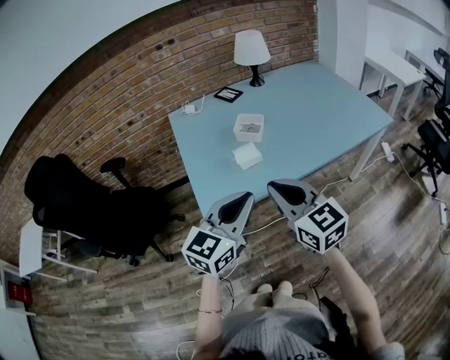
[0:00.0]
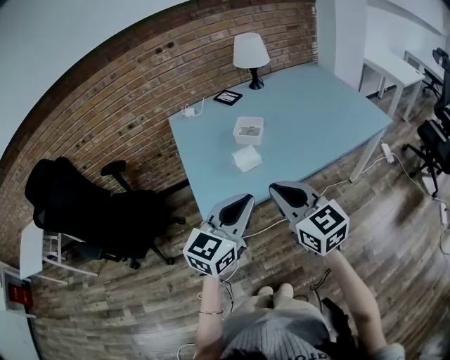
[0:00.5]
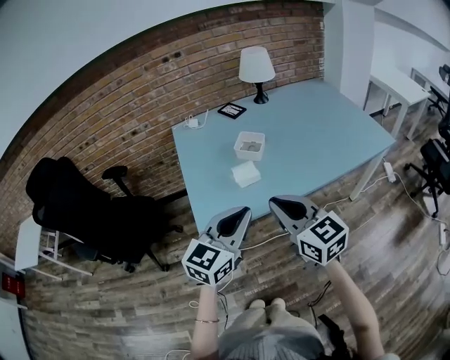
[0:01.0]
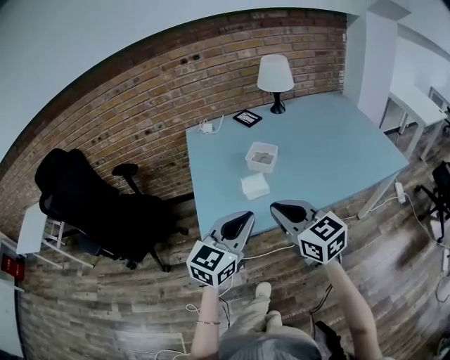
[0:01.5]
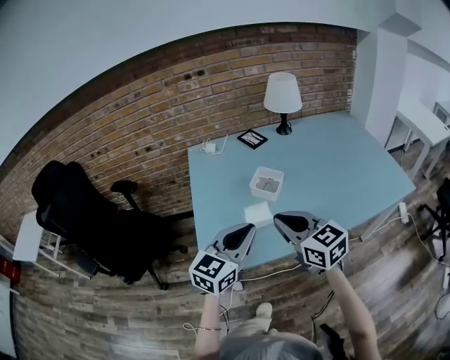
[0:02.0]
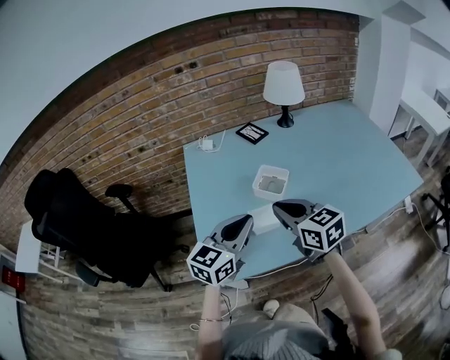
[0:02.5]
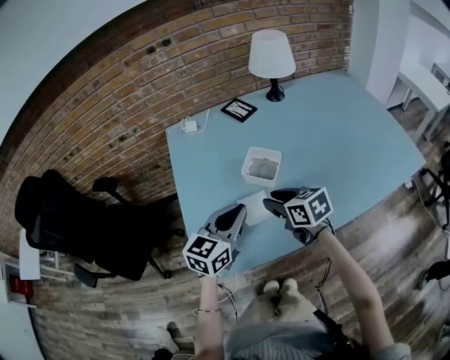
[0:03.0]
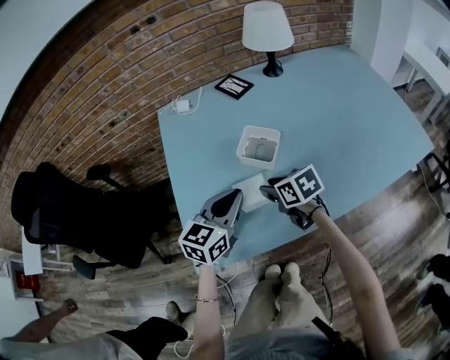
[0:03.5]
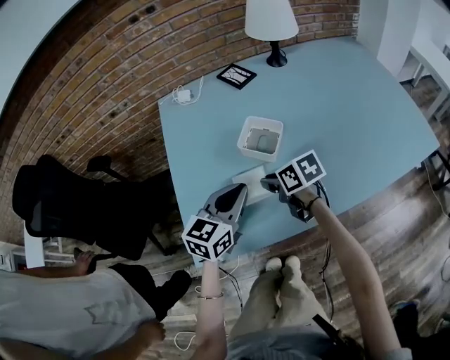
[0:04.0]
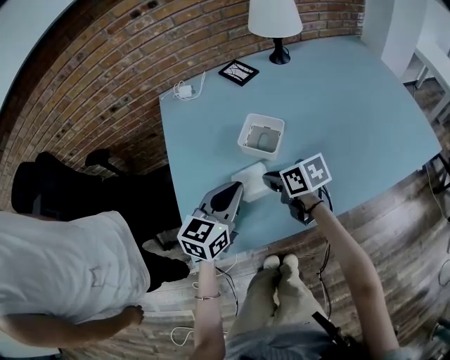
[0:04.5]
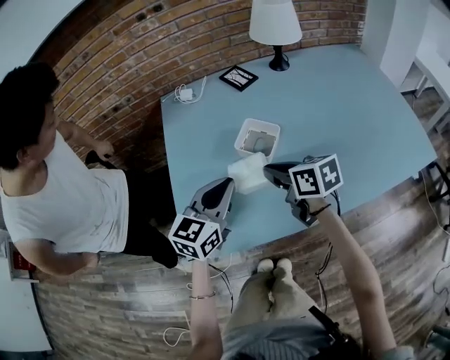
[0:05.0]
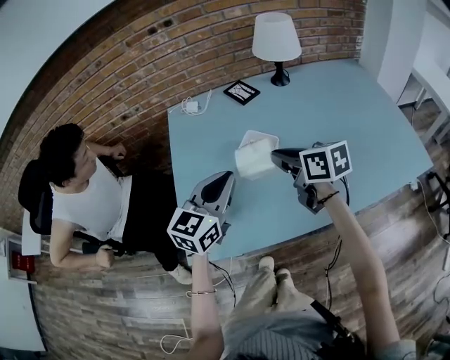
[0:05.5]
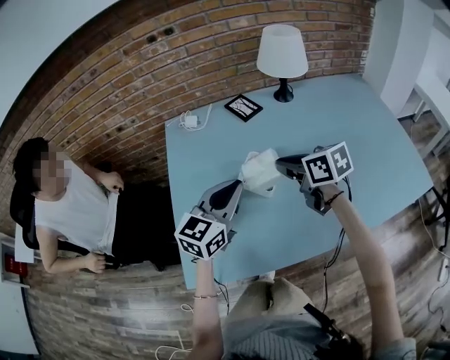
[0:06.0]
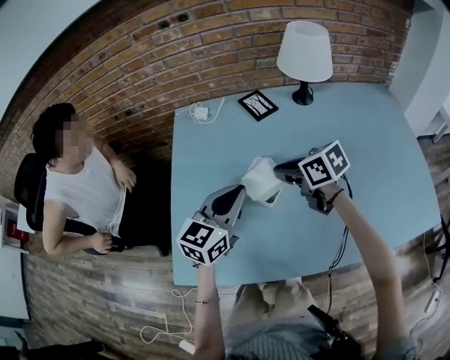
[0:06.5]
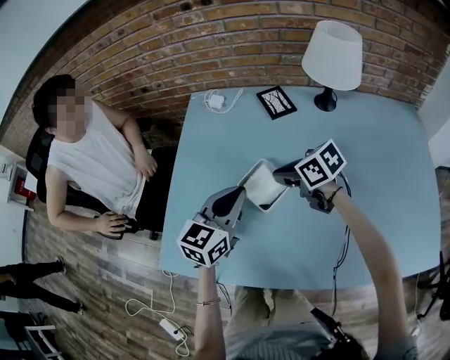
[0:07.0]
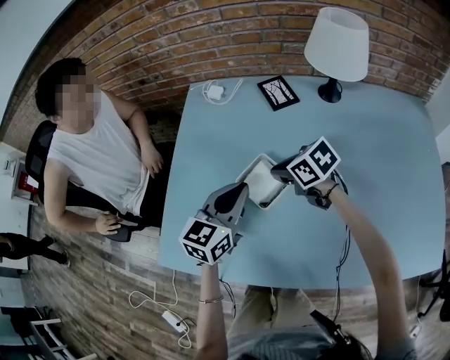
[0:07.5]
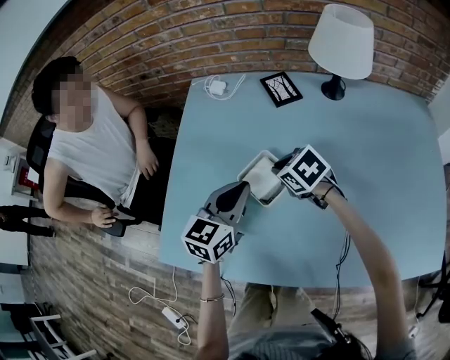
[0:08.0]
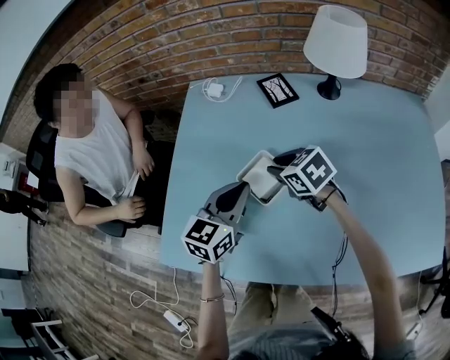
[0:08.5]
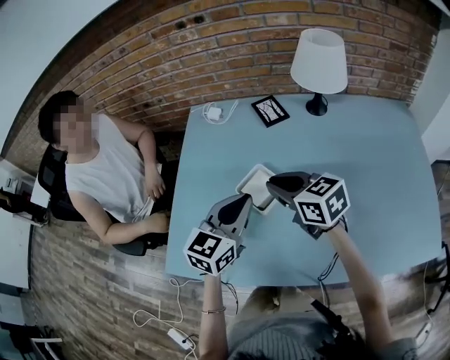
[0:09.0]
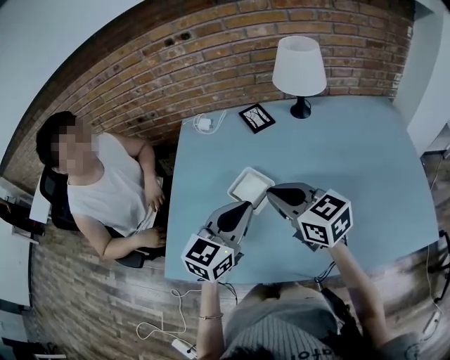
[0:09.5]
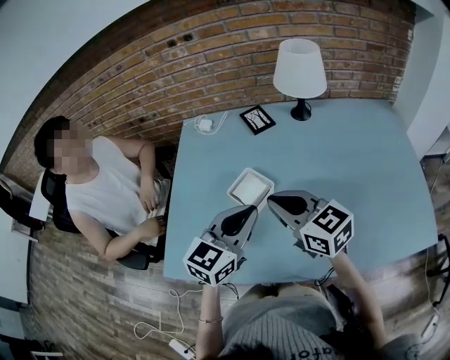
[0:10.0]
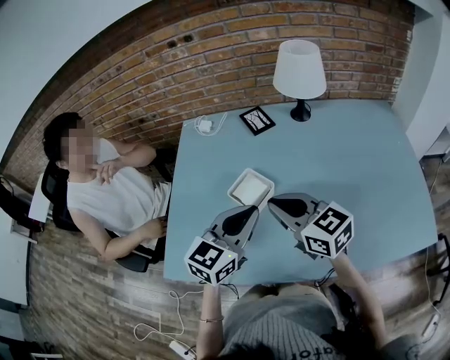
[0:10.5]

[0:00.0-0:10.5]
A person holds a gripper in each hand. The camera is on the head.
0:00.0 to 0:02.0: Both grippers travel together forward, approximately 15 cm.
0:02.0 to 0:04.0: The right gripper is displaced downward and forward by roughly 25 cm, and rotates about 50 degrees. The left gripper moves forward and downward, some 15 cm.
0:04.0 to 0:06.5: The left gripper is displaced forward and upward by approximately 10 cm. The right gripper heads forward, upward and to the right, covering about 20 cm, and turns by approximately 20 degrees.
0:06.5 to 0:08.5: The right gripper heads downward, covering roughly 5 cm, and changes its angle by roughly 20 degrees; the left gripper ends up approximately 5 cm from where it was.
0:08.5 to 0:10.5: The left gripper shifts roughly 15 cm backward, upward and to the right. The right gripper shifts roughly 20 cm upward and backward, and points its fingers roughly 30 degrees further upward.

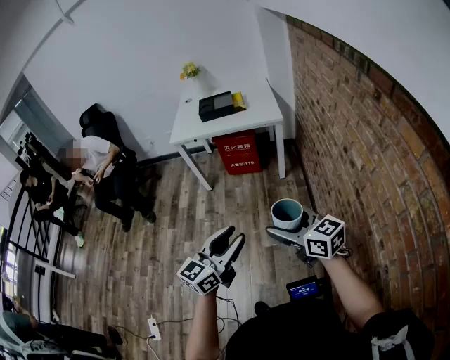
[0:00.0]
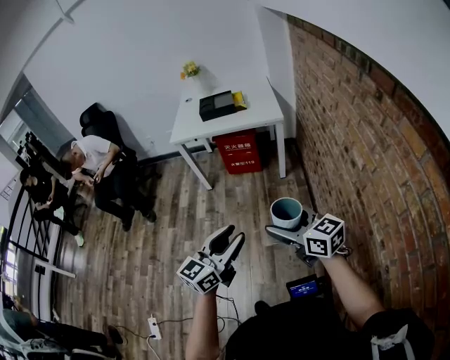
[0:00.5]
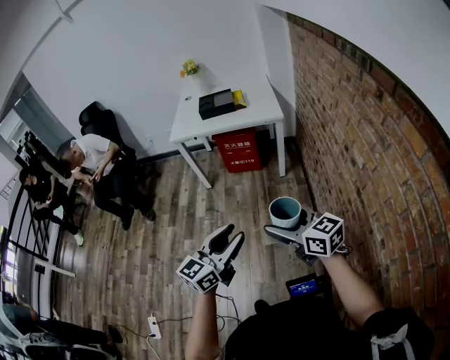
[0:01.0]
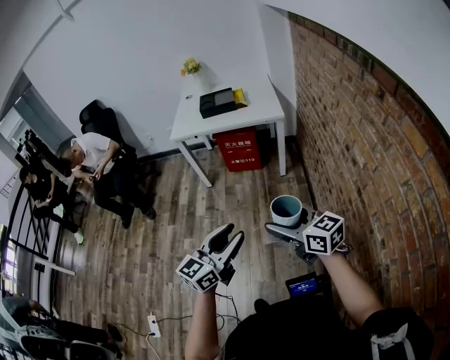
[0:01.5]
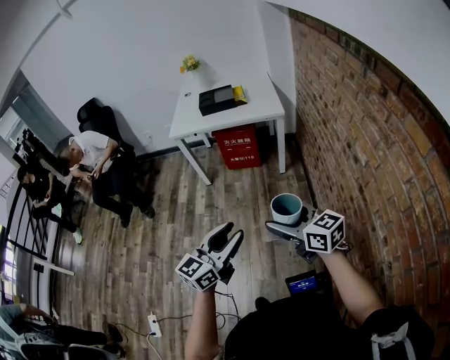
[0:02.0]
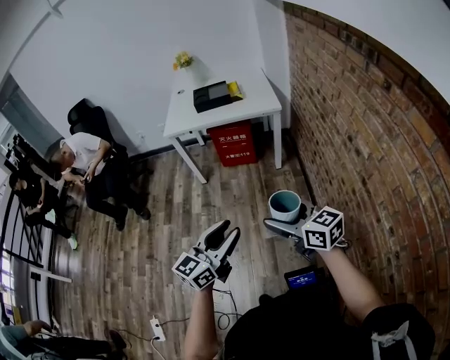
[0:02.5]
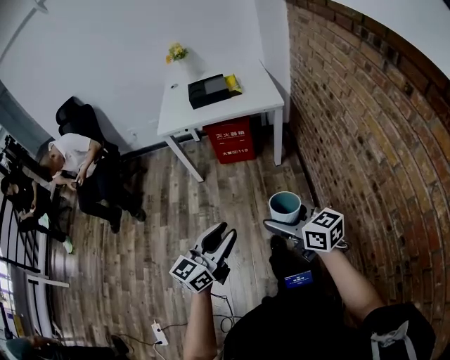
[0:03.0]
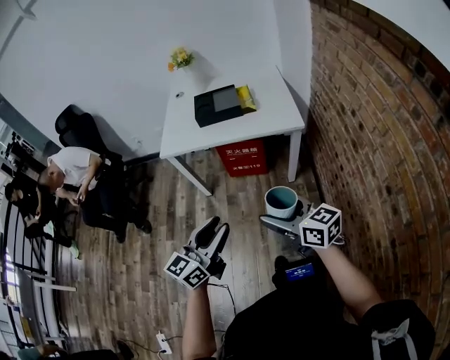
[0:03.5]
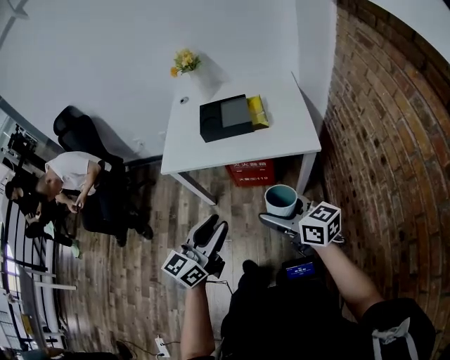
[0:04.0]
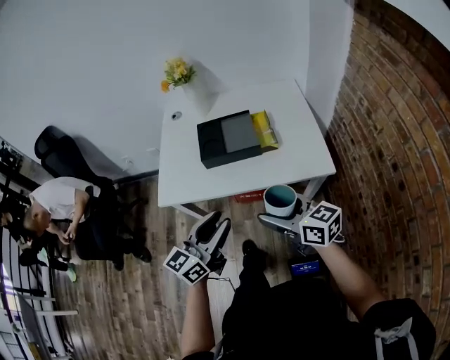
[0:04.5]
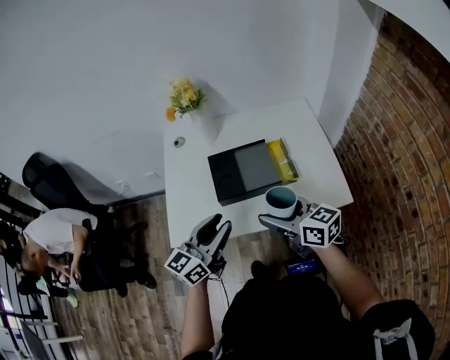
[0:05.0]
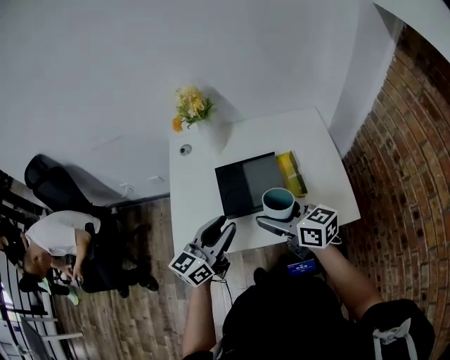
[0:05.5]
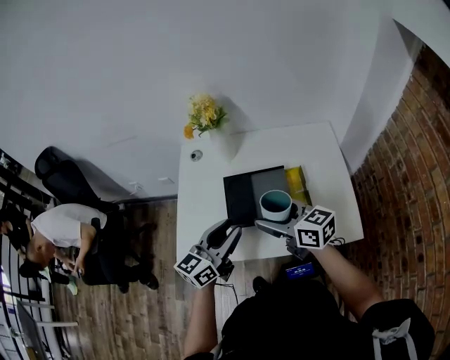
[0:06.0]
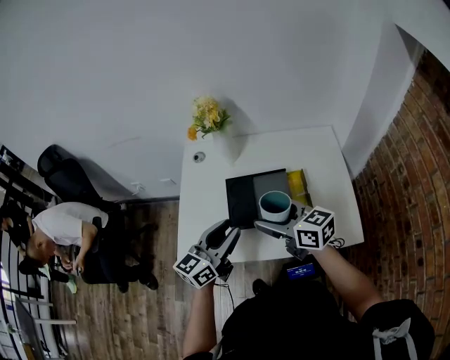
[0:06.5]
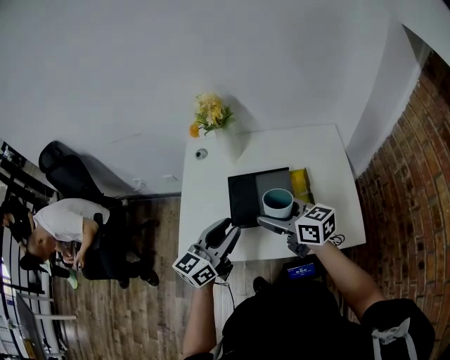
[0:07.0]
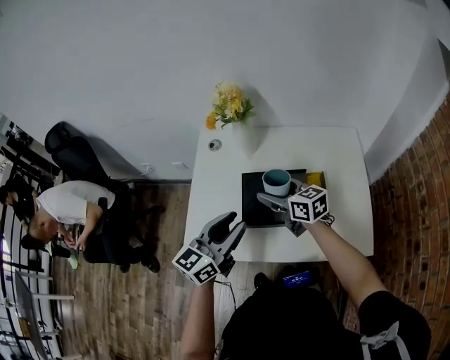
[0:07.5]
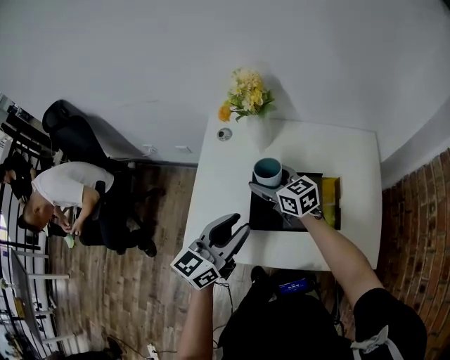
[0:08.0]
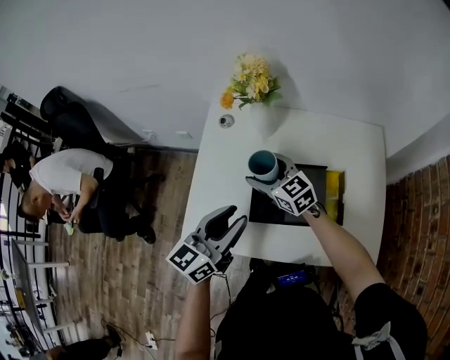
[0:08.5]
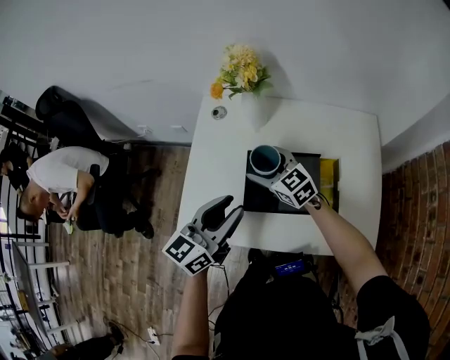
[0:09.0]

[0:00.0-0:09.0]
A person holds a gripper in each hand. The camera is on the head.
0:00.0 to 0:02.0: The grippers move only a little.
0:02.0 to 0:04.5: Both grippers are carried forward, some 60 cm.
0:04.5 to 0:07.0: Both grippers travel together forward, roughly 25 cm.
0:07.0 to 0:09.0: The left gripper is displaced forward by approximately 5 cm. The right gripper heads forward, downward and to the left, covering roughly 20 cm, and turns by approximately 30 degrees.

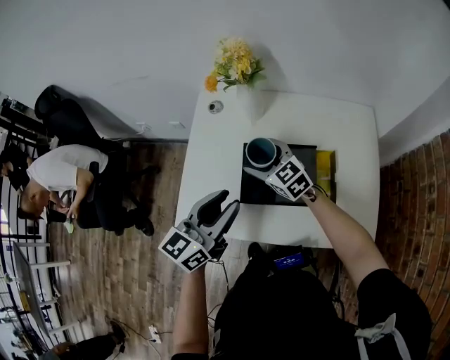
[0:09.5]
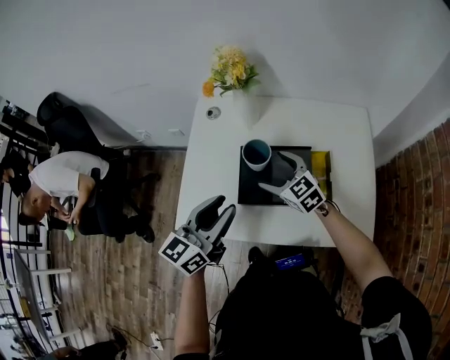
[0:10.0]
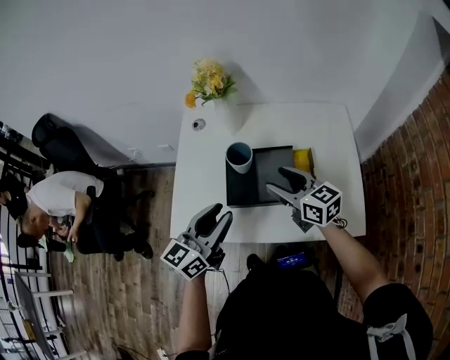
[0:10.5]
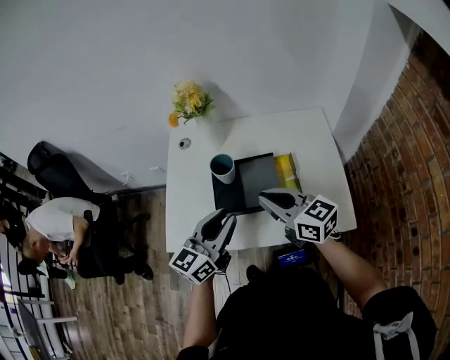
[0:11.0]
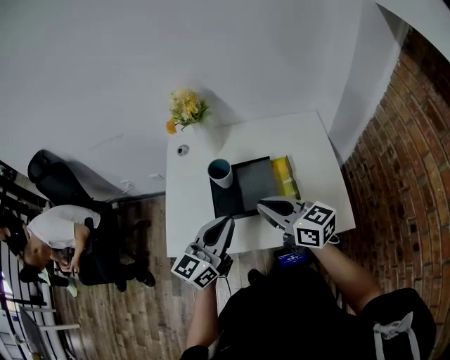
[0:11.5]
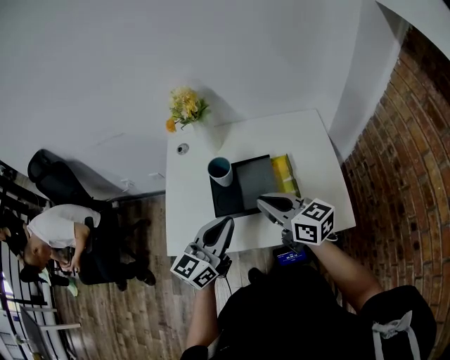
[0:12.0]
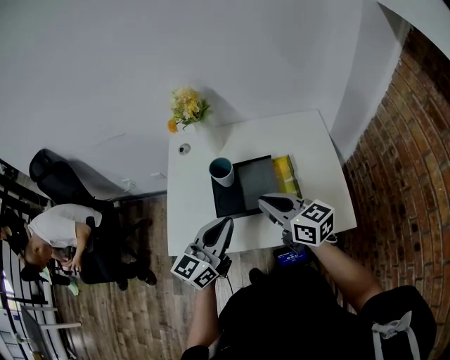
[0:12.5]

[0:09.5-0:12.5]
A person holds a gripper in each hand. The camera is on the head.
0:09.5 to 0:11.0: The right gripper moves backward, upward and to the right, roughly 25 cm, turns by roughly 30 degrees, and closes its fingers, while the left gripper moves to the right and backward, approximately 10 cm.
0:11.0 to 0:12.5: The left gripper closes.

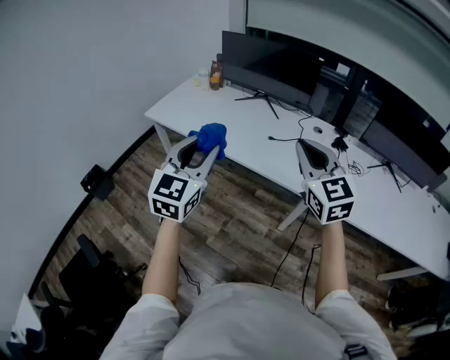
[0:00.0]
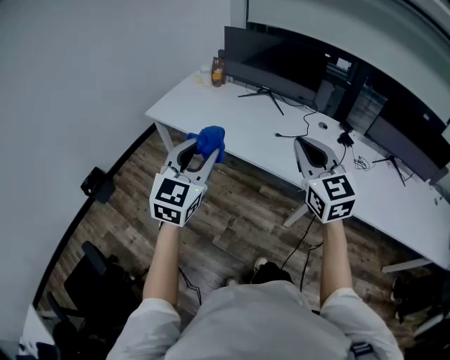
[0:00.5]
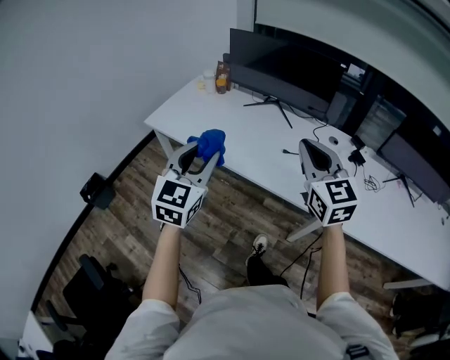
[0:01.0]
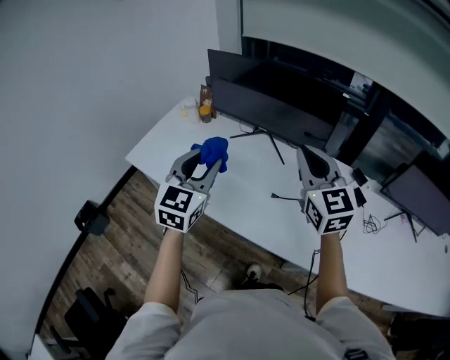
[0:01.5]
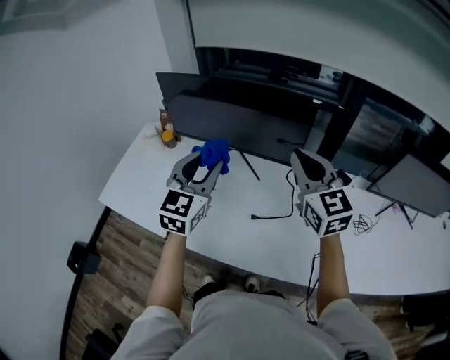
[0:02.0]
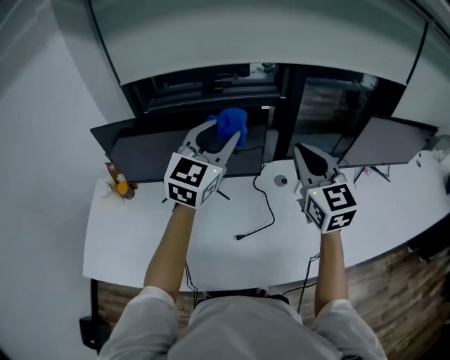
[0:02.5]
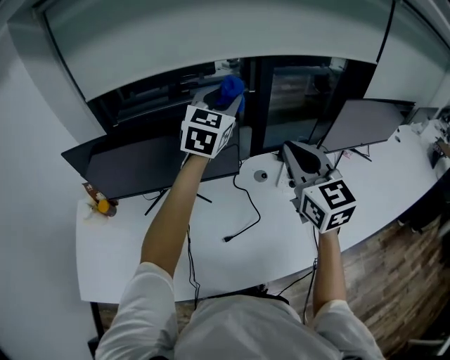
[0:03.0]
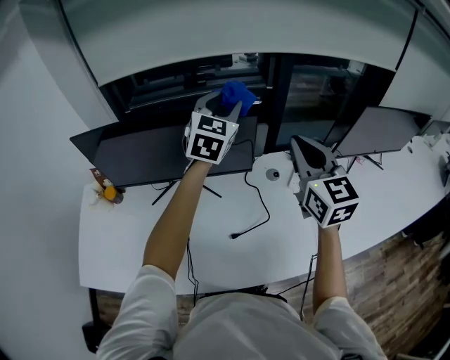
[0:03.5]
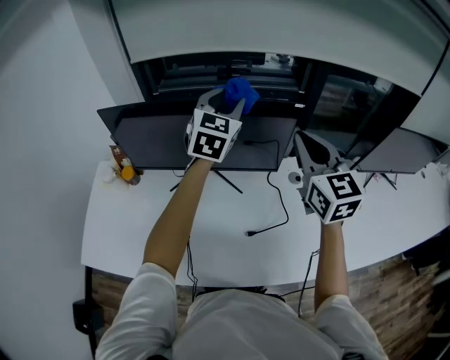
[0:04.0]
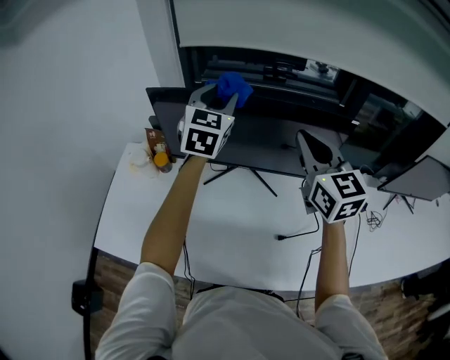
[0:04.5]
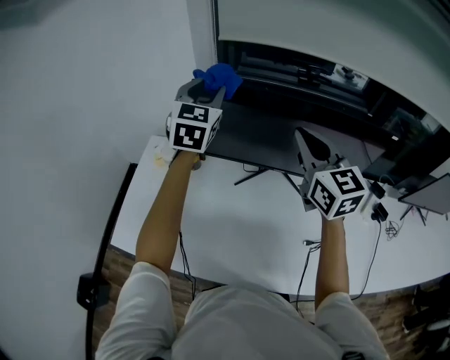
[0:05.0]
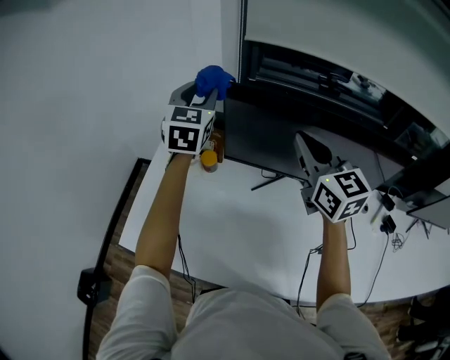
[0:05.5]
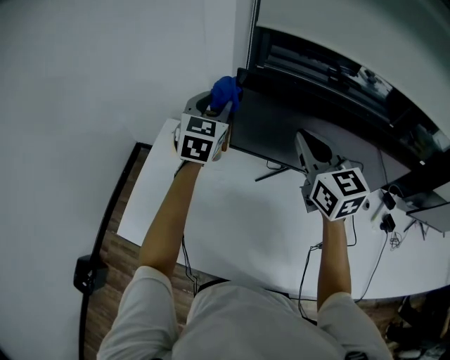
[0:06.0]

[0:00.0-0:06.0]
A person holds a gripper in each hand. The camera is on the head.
0:00.0 to 0:02.0: The two grippers travel together, forward, about 50 cm.
0:02.0 to 0:04.0: The right gripper shifts by roughly 10 cm, and changes its angle by roughly 20 degrees; the left gripper ends up about 30 cm from where it was.
0:04.0 to 0:06.0: The pair of grippers is taken to the left, roughly 40 cm. The right gripper swivels roughly 20 degrees. The left gripper turns by some 20 degrees.
